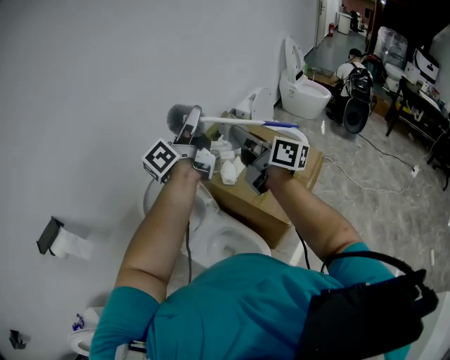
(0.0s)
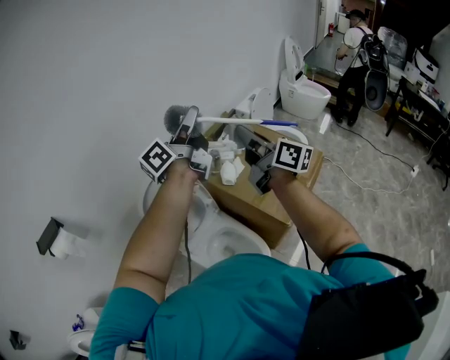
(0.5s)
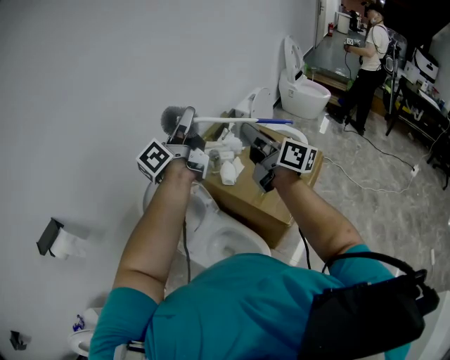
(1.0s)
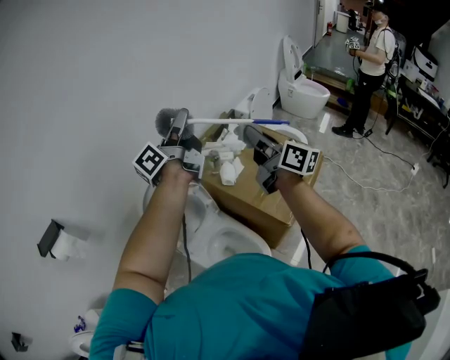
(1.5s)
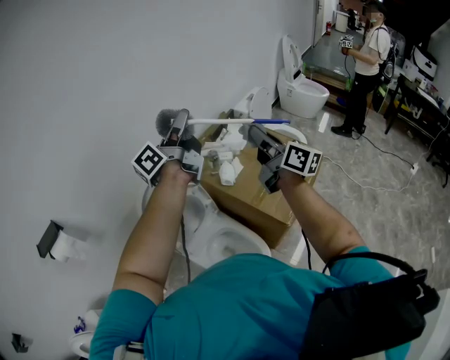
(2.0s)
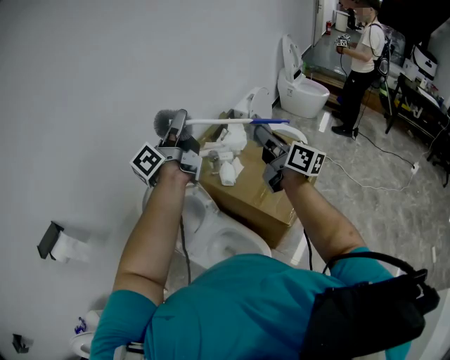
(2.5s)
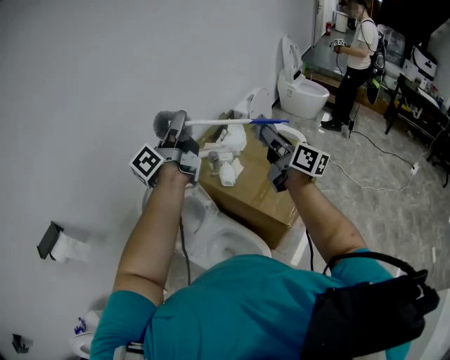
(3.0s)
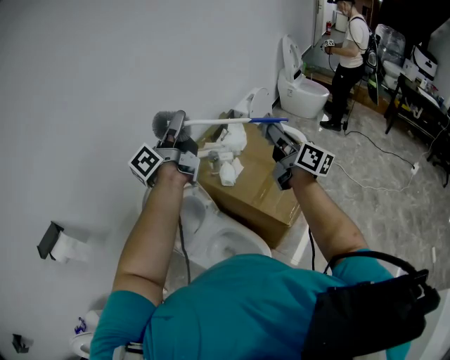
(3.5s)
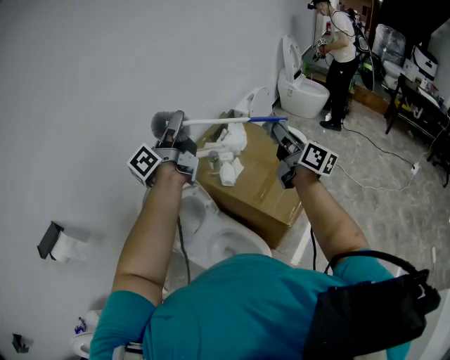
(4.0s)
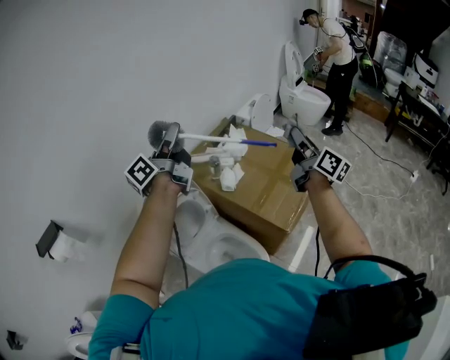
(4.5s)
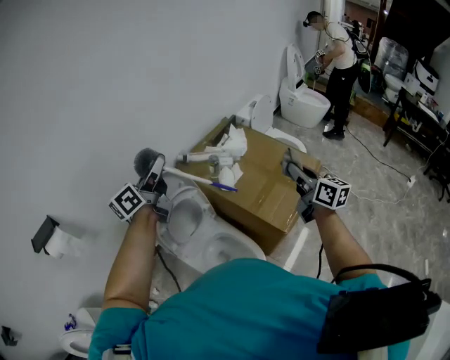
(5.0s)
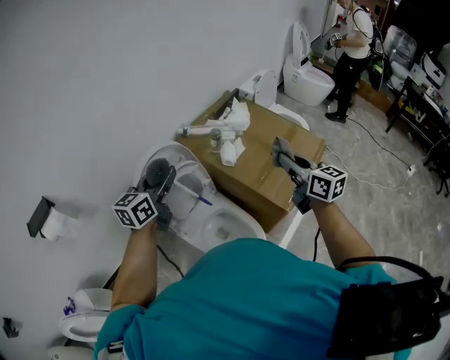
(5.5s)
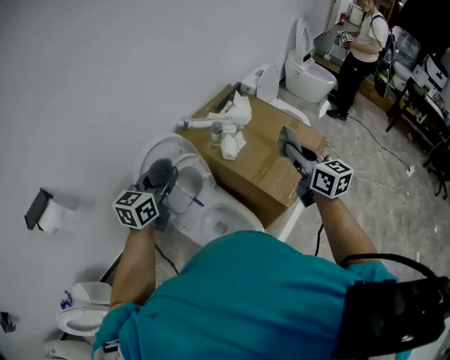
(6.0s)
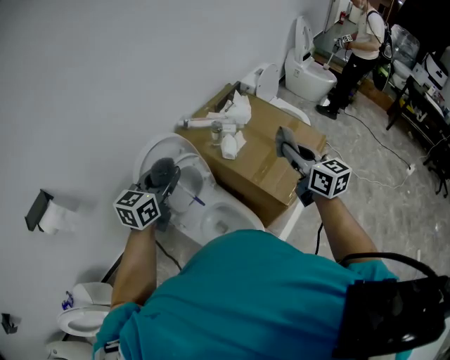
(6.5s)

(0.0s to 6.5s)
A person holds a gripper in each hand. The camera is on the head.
0.0s - 2.0s: The right gripper shifts approximately 5 cm to the right.
2.0s - 4.5s: The right gripper heads to the right, covering approximately 15 cm.
4.5s - 6.5s: The left gripper moves downward and backward, approximately 20 cm, and points its fingers roughly 30 degrees further downward. The right gripper heads to the left, downward and backward, covering roughly 15 cm, and swivels roughly 40 degrees.

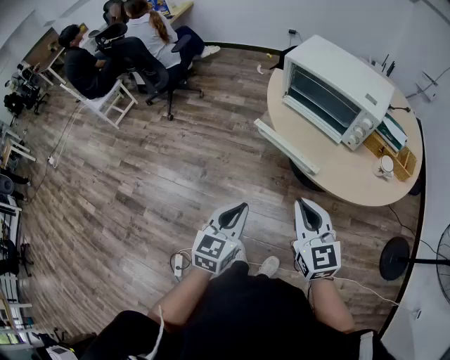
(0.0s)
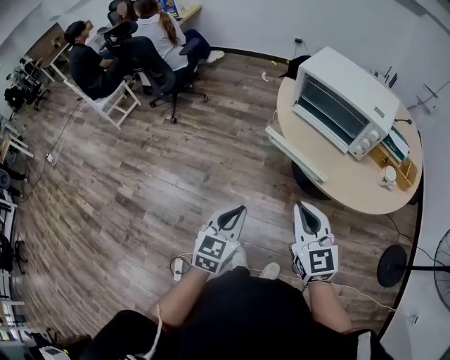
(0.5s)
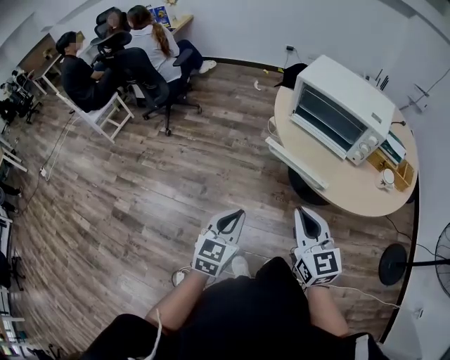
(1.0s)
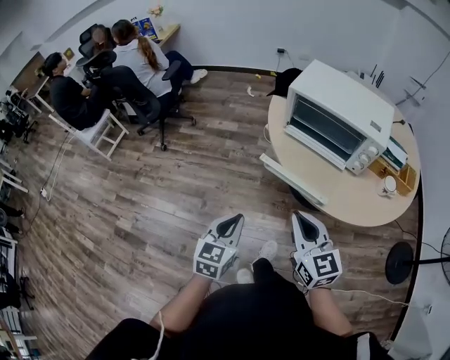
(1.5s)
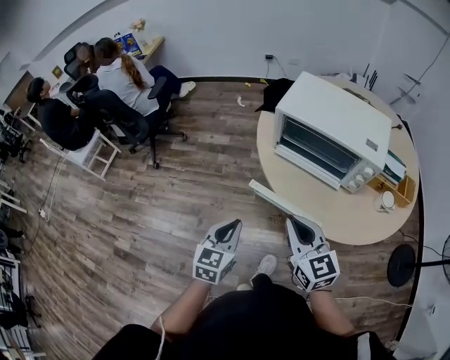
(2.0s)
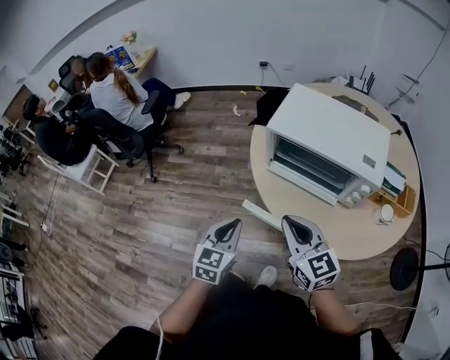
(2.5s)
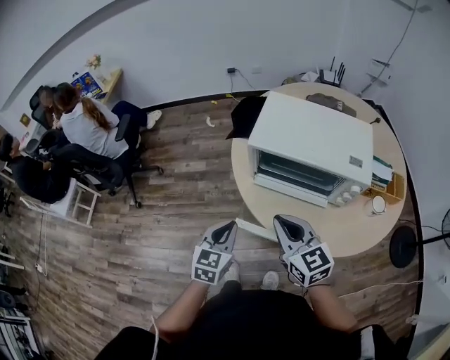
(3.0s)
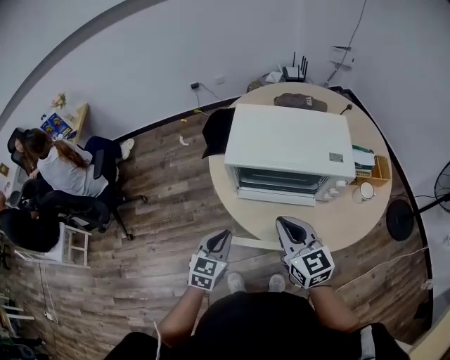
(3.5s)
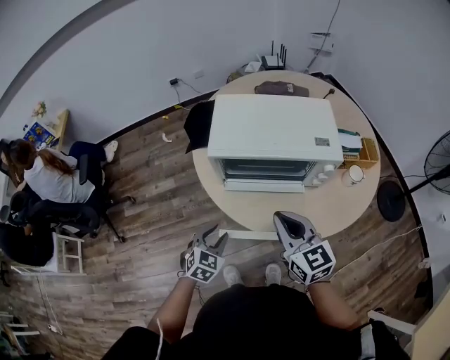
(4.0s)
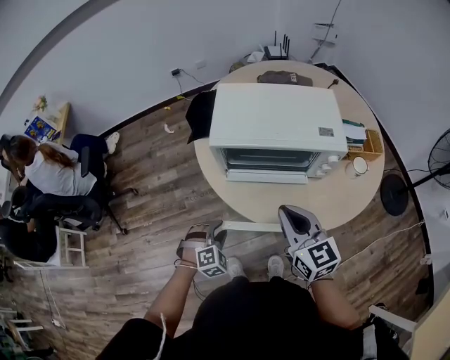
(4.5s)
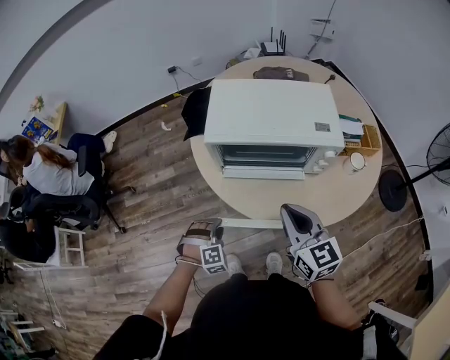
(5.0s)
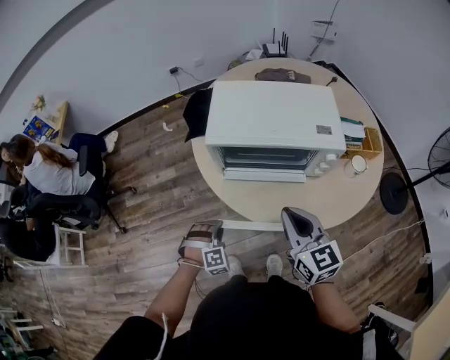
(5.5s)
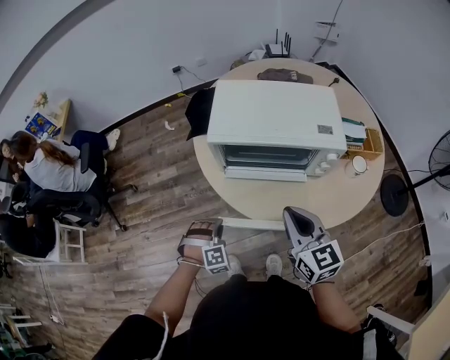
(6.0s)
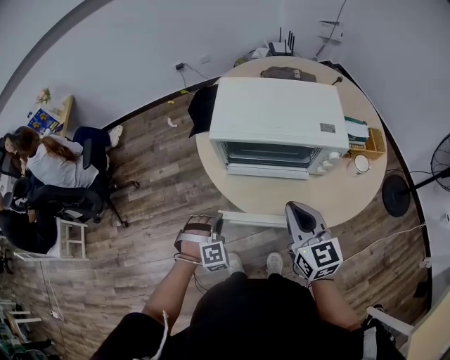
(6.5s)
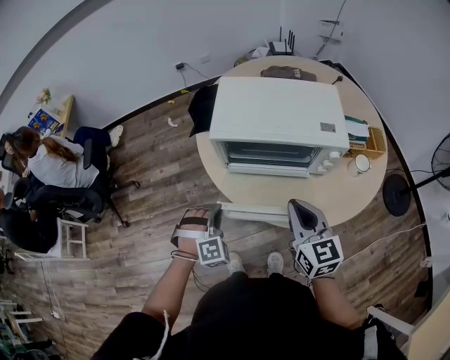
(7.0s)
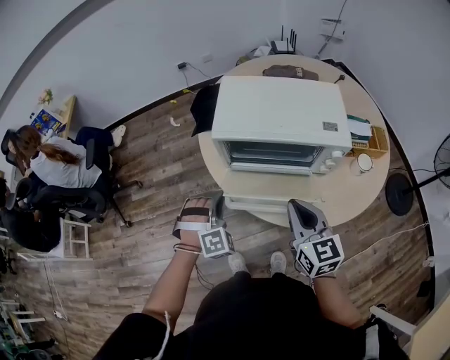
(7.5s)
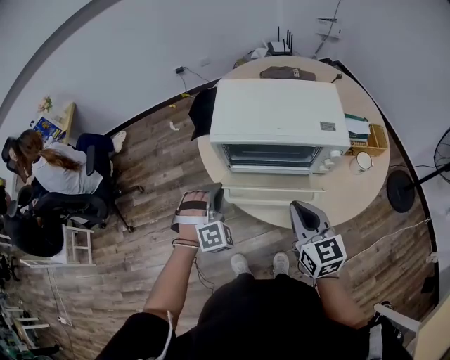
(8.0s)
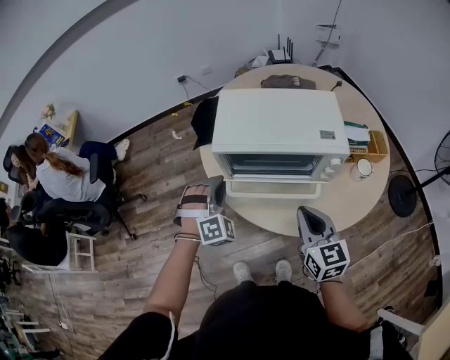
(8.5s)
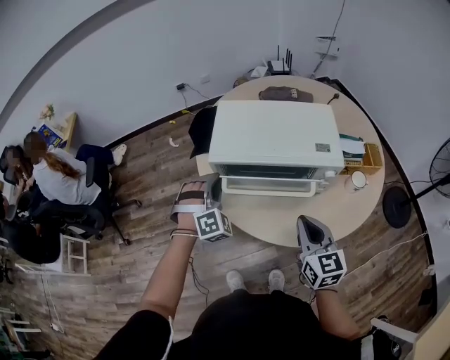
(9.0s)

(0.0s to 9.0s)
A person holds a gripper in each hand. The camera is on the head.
0.0s - 2.0s: The grippers both shift forward by roughly 20 cm.
2.0s - 4.5s: The left gripper moves approximately 20 cm, twists roughly 70 degrees clockwise, seen from behind, and opens up; the right gripper shifts by about 10 cm, and changes its angle by roughly 20 degrees.
4.5s - 7.0s: The left gripper heads upward, covering some 5 cm, and closes its fingers.
7.0s - 9.0s: The left gripper travels forward and upward by roughly 15 cm.

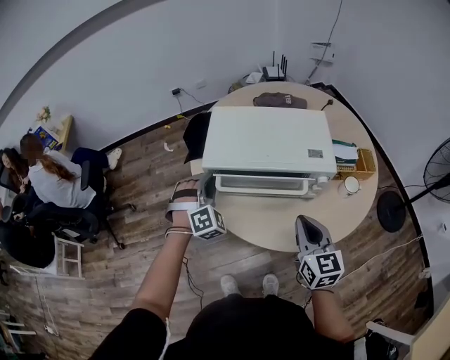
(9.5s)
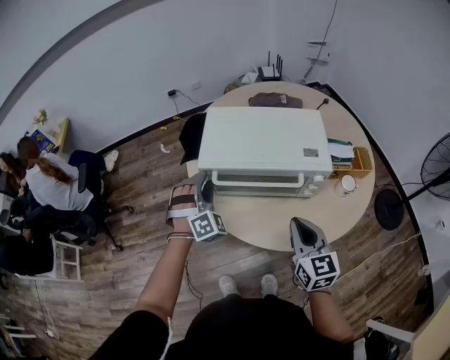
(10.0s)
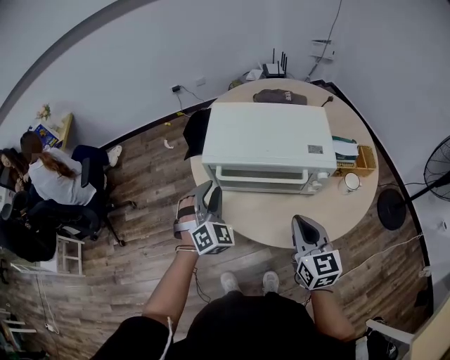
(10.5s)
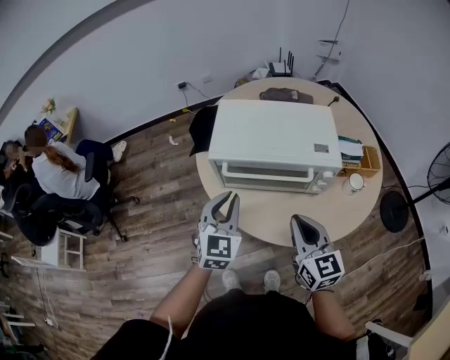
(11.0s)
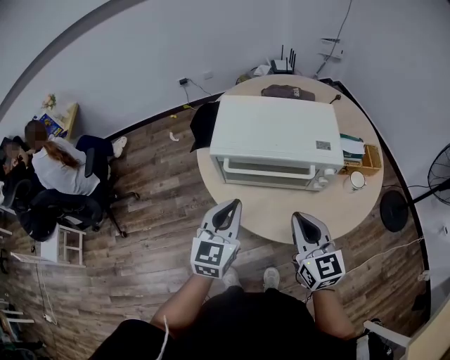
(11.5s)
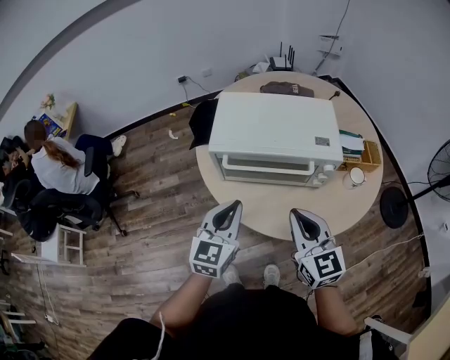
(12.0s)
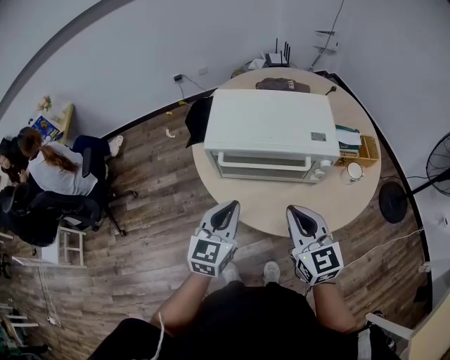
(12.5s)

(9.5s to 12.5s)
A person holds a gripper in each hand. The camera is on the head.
9.5s - 11.0s: The left gripper travels backward and upward by approximately 10 cm, and rolls counterclockwise, seen from behind, by roughly 50 degrees.
11.0s - 12.5s: The grippers stay close to where they were, moving slightly.

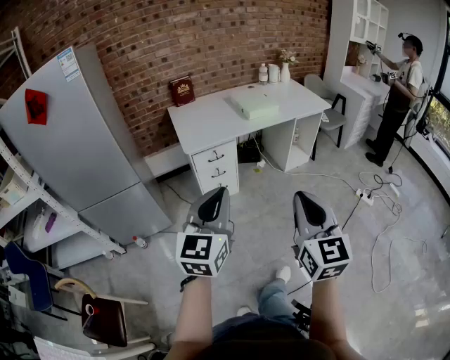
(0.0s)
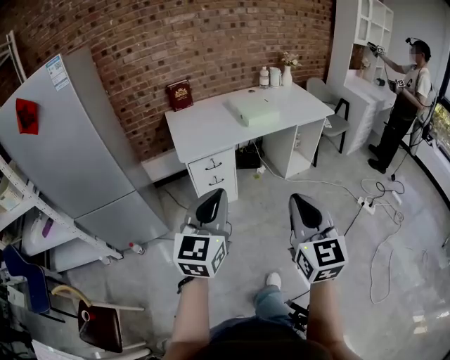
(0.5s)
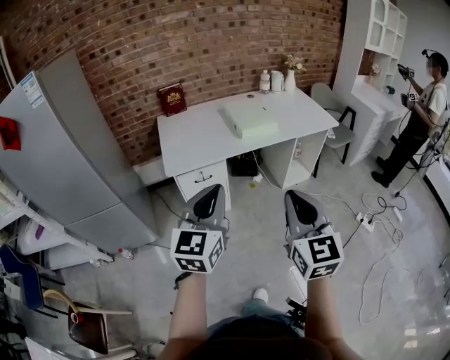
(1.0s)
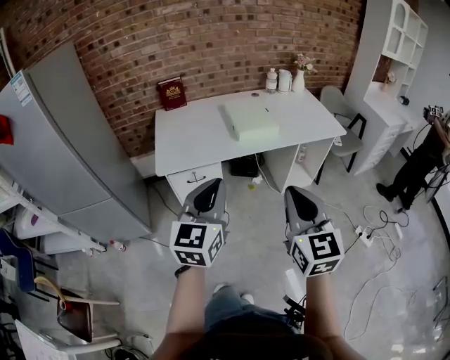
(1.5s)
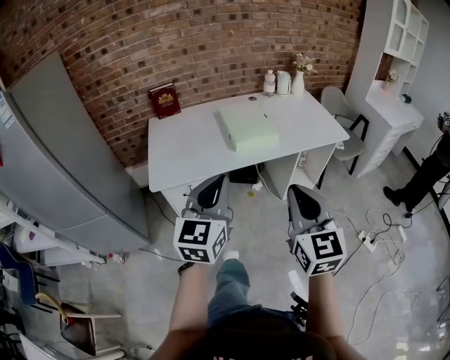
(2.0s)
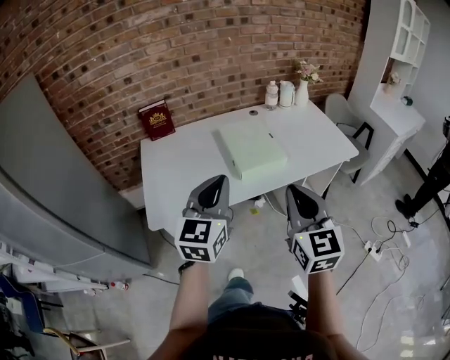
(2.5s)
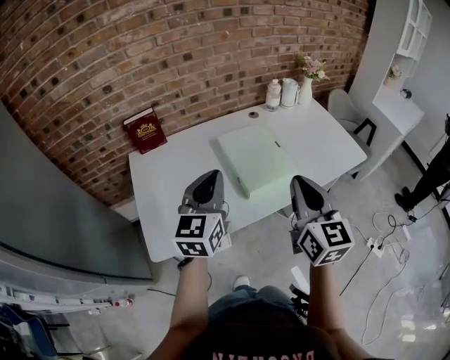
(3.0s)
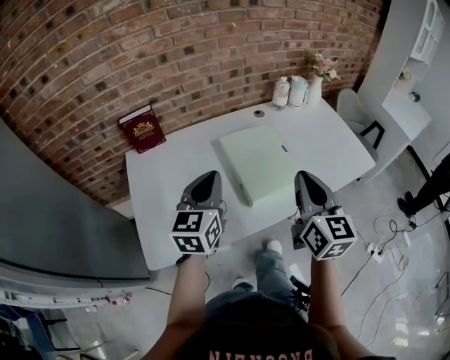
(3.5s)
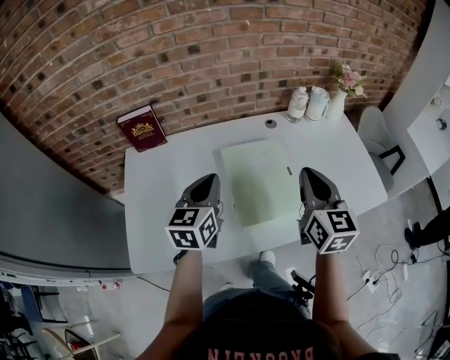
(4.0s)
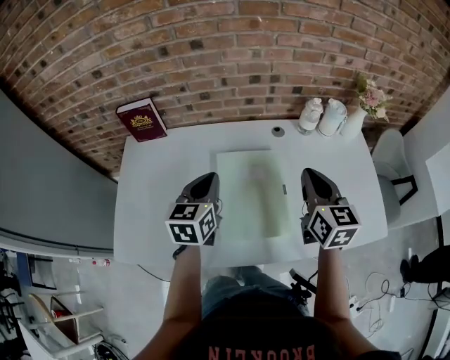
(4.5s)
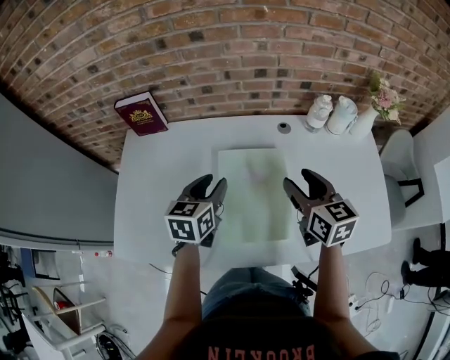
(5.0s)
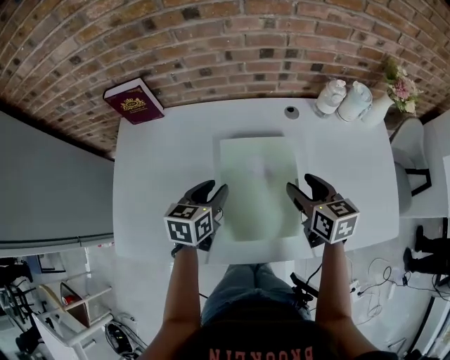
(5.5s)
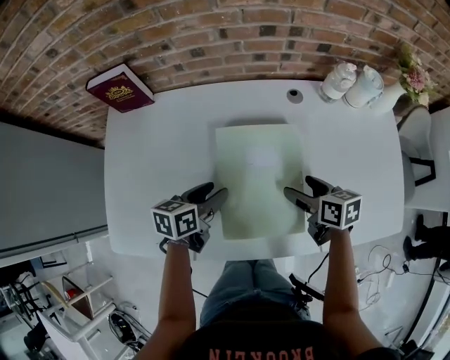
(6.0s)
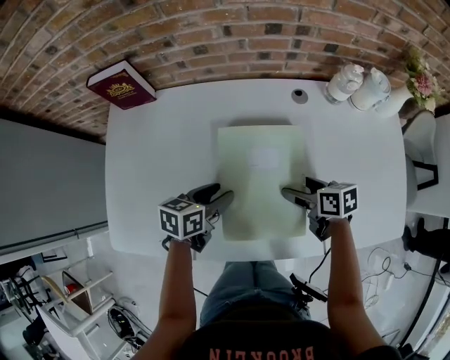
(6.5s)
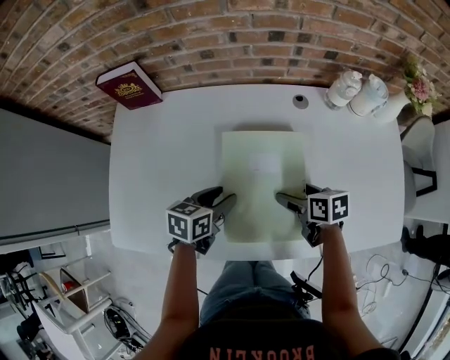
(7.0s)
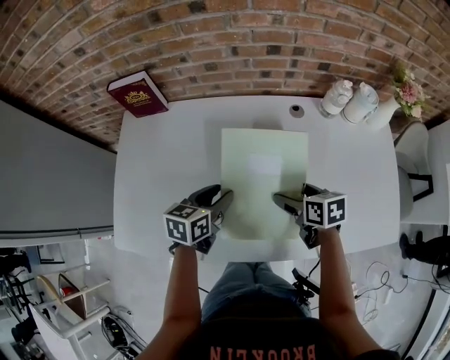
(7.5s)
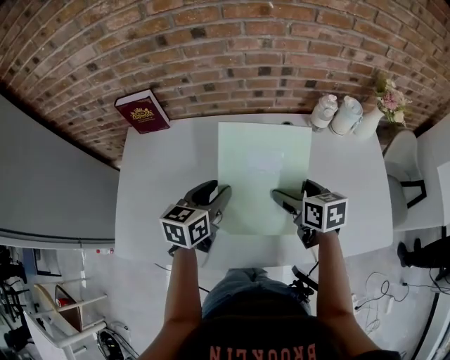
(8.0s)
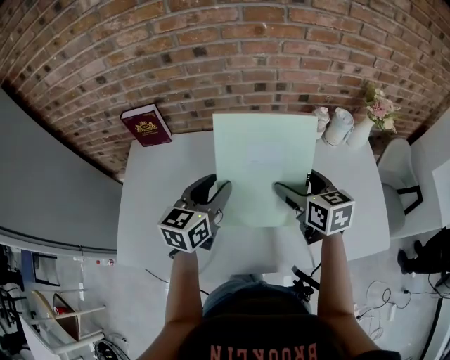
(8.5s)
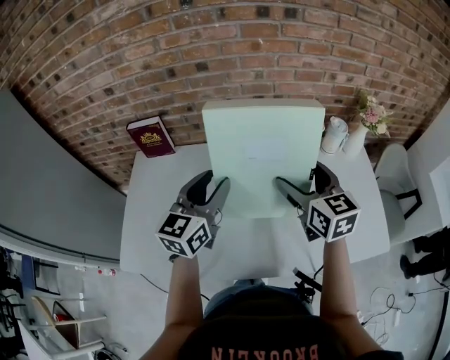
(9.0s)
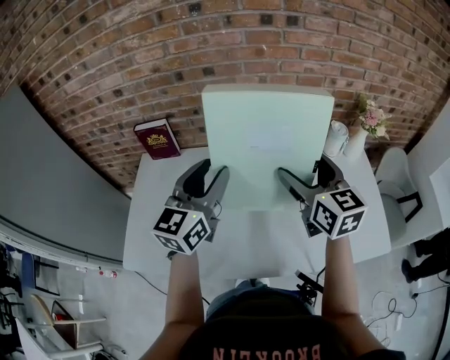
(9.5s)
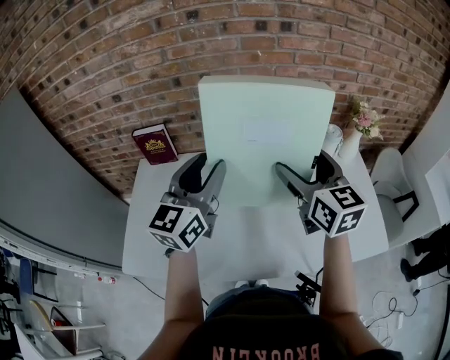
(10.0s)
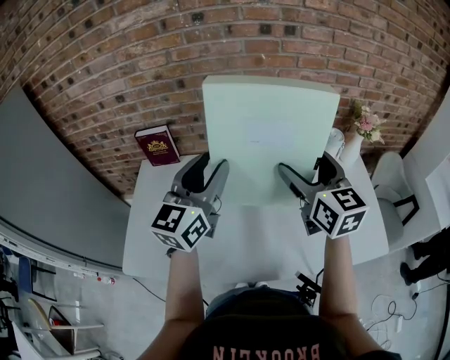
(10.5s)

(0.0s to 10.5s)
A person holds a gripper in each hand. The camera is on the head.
0.0s - 2.0s: Both grippers are carried forward, some 40 cm.
2.0s - 4.0s: The two grippers travel together, forward, some 50 cm. The left gripper rotates approximately 20 degrees.
4.0s - 6.5s: The two grippers go some 25 cm downward. The right gripper tilts its fingers about 30 degrees downward, and opens its fingers, while the left gripper changes its angle by some 40 degrees, and opens up.
6.5s - 8.5s: The grippers both shift upward by roughly 20 cm. The left gripper rotates approximately 40 degrees. The right gripper changes its angle by approximately 40 degrees.
8.5s - 10.5s: Both grippers move upward, approximately 15 cm. The right gripper swivels roughly 30 degrees; the left gripper rotates approximately 30 degrees.
